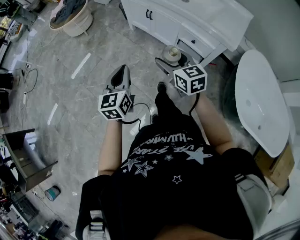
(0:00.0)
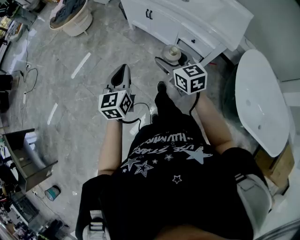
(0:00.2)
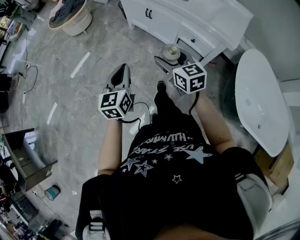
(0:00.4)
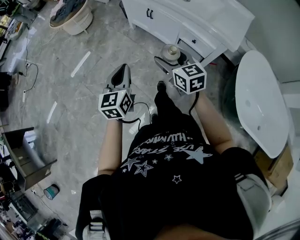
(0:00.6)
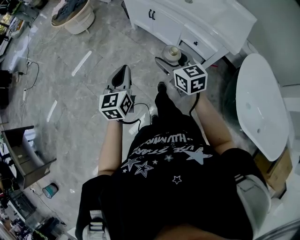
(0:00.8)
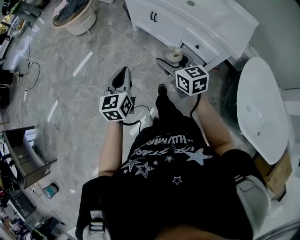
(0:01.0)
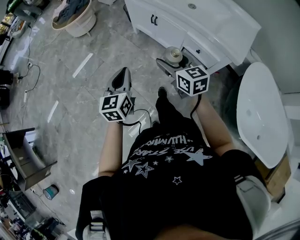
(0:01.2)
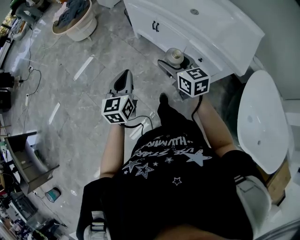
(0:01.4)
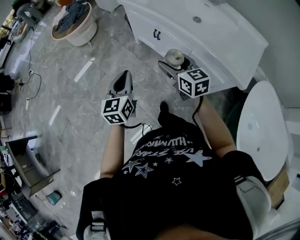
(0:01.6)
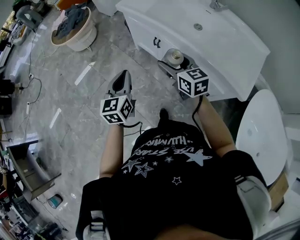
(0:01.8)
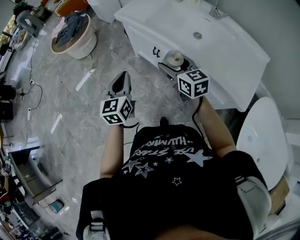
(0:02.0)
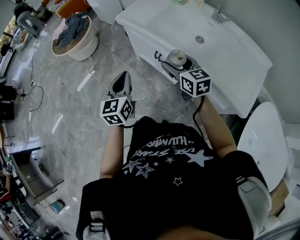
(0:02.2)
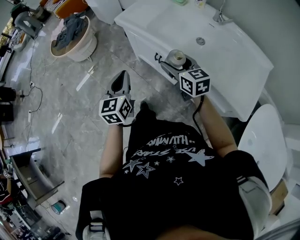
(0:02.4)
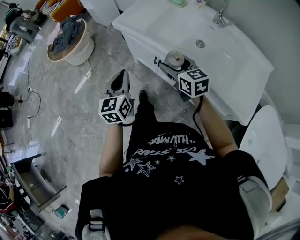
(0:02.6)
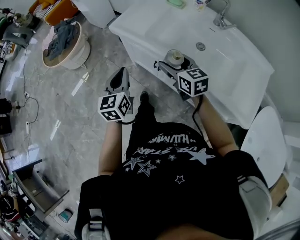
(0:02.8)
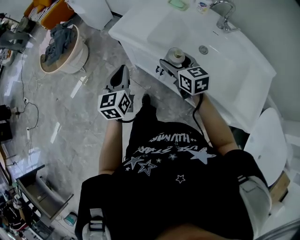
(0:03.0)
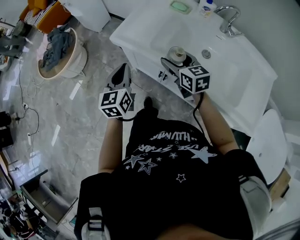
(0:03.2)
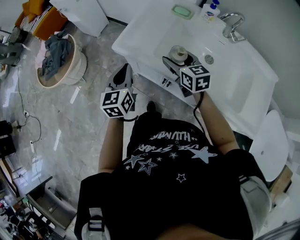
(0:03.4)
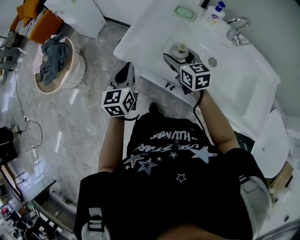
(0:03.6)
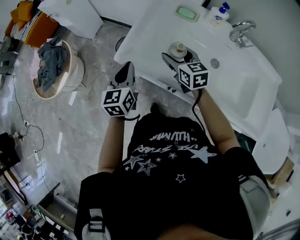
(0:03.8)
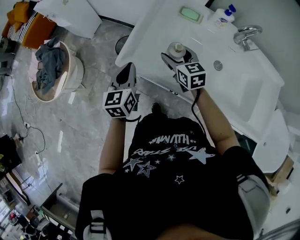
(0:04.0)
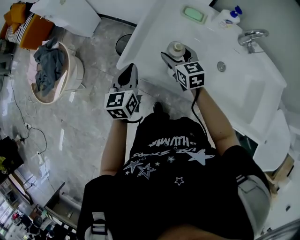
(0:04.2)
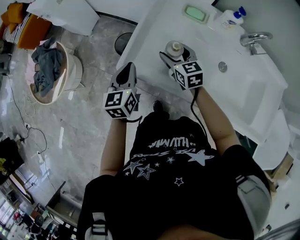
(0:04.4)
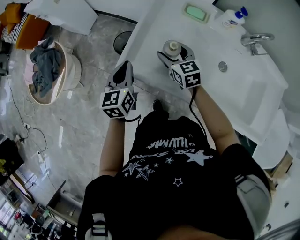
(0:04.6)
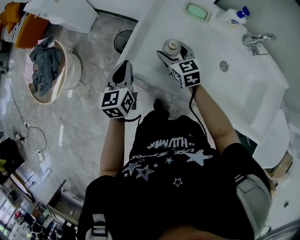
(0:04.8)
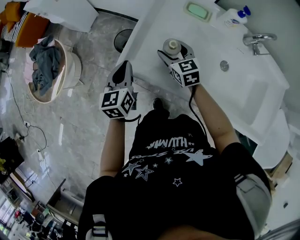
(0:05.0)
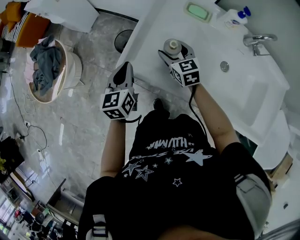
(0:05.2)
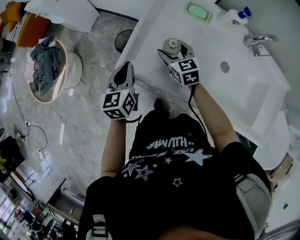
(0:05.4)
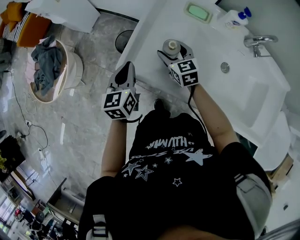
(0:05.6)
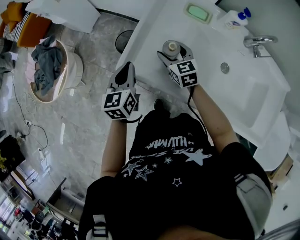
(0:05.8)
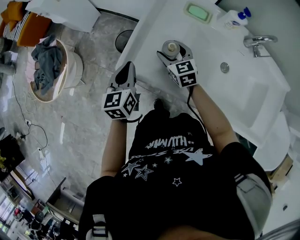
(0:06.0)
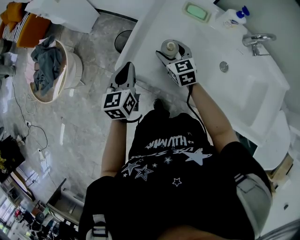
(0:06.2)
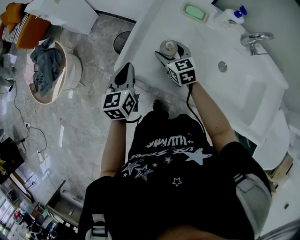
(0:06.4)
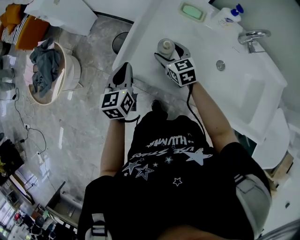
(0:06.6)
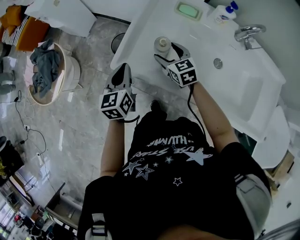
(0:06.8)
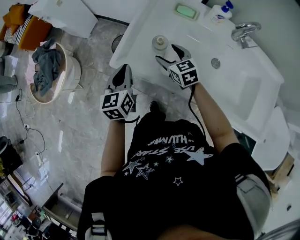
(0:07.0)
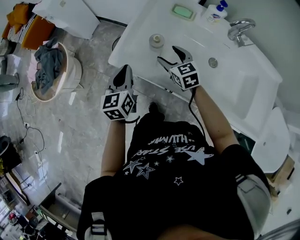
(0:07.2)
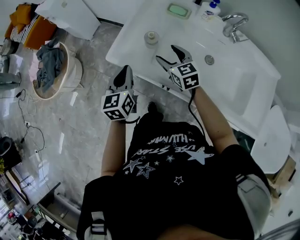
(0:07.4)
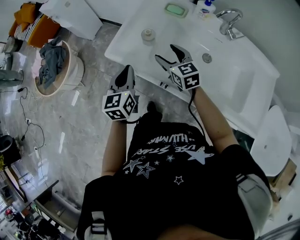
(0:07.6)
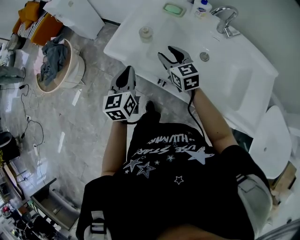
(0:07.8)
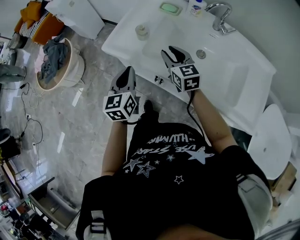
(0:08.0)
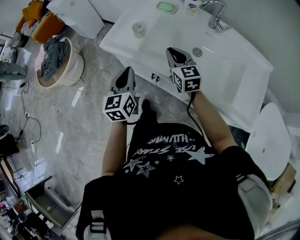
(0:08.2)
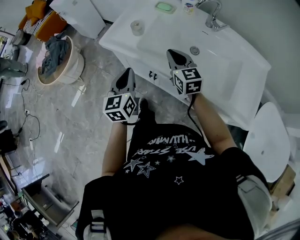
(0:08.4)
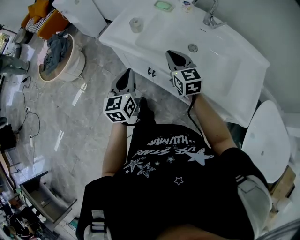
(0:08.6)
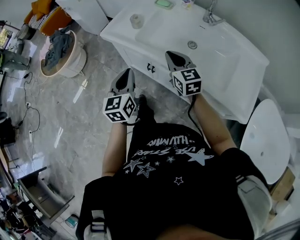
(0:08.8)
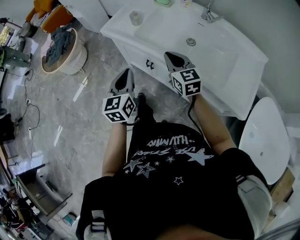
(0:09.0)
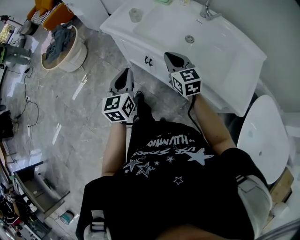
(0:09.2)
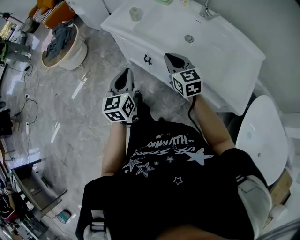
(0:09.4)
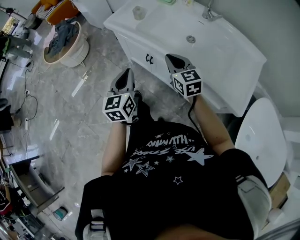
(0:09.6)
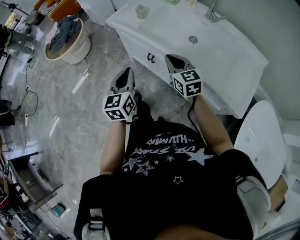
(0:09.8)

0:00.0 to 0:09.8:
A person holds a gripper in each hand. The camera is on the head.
0:00.0 to 0:01.4: Both grippers move forward, about 15 cm.
0:01.4 to 0:02.8: Both grippers travel together forward, some 40 cm.
0:02.8 to 0:04.2: The two grippers go some 35 cm forward.
0:04.2 to 0:05.6: The right gripper moves some 5 cm.
0:05.6 to 0:07.0: The two grippers go roughly 5 cm backward.
0:07.0 to 0:08.4: The left gripper moves backward and to the right, about 30 cm. Meanwhile the right gripper is displaced backward, upward and to the right by roughly 30 cm, and closes its fingers.
0:08.4 to 0:09.8: Both grippers travel together backward, approximately 20 cm.

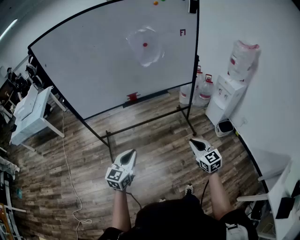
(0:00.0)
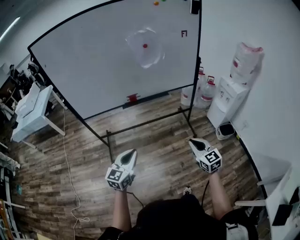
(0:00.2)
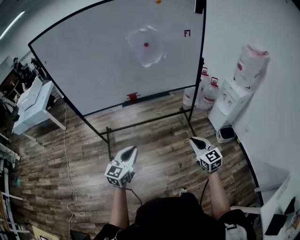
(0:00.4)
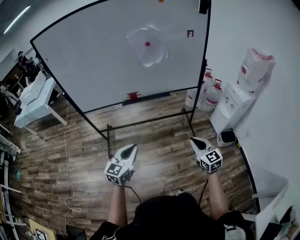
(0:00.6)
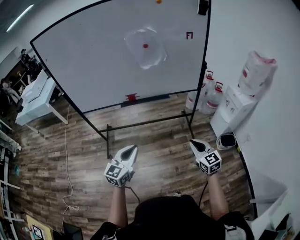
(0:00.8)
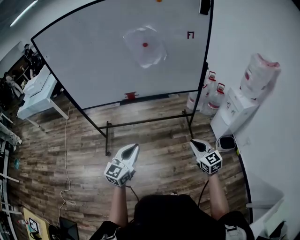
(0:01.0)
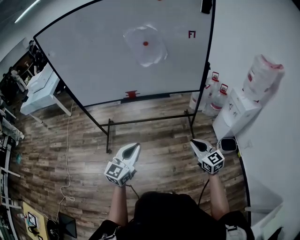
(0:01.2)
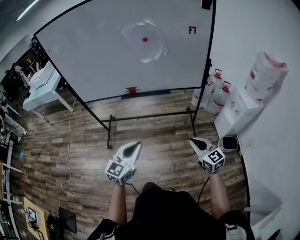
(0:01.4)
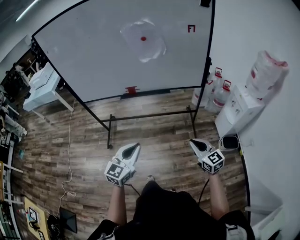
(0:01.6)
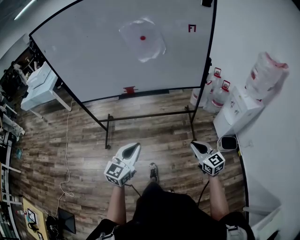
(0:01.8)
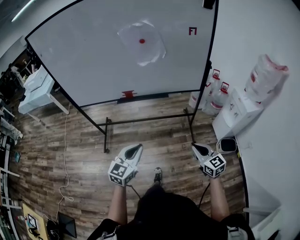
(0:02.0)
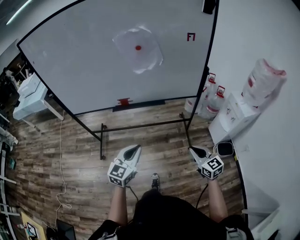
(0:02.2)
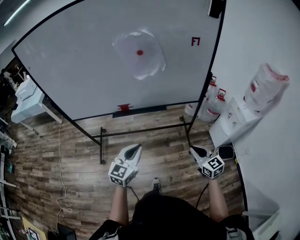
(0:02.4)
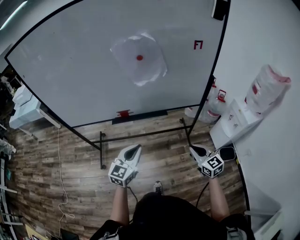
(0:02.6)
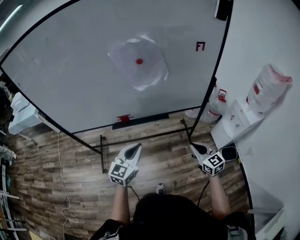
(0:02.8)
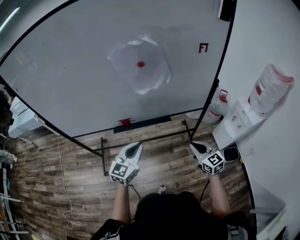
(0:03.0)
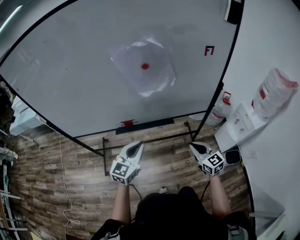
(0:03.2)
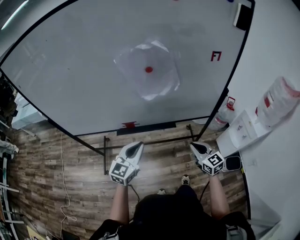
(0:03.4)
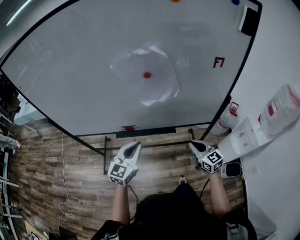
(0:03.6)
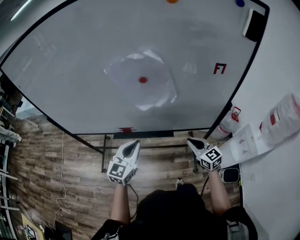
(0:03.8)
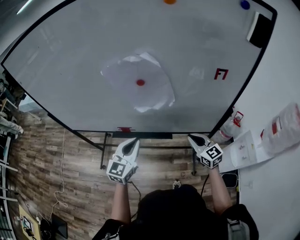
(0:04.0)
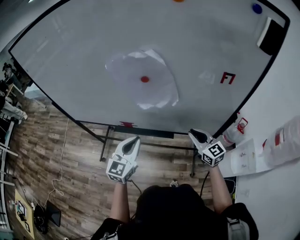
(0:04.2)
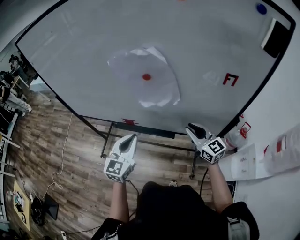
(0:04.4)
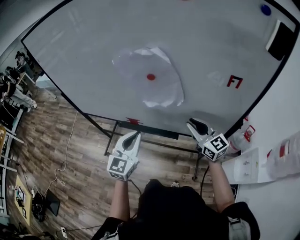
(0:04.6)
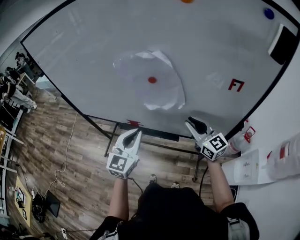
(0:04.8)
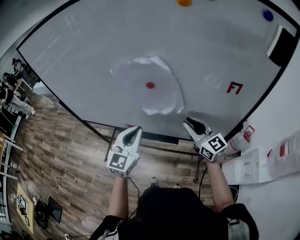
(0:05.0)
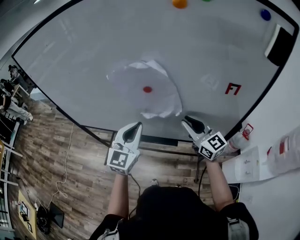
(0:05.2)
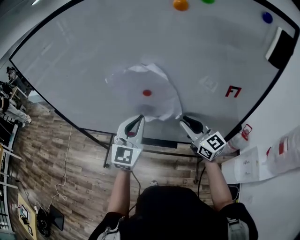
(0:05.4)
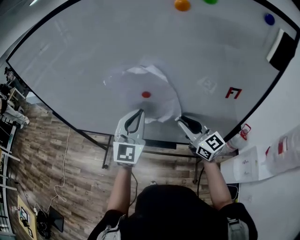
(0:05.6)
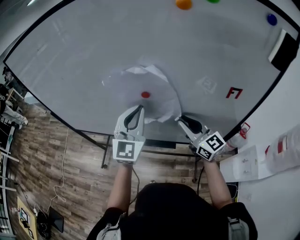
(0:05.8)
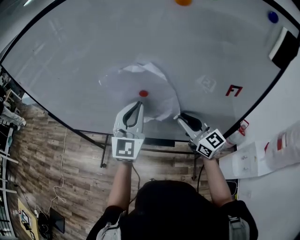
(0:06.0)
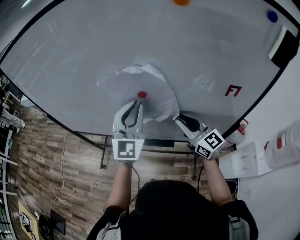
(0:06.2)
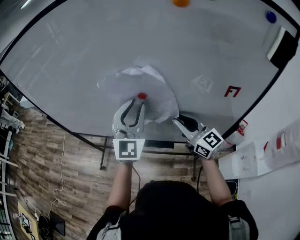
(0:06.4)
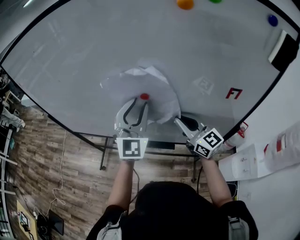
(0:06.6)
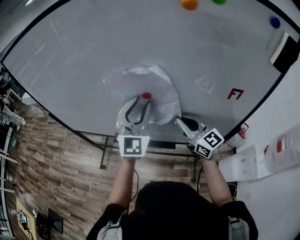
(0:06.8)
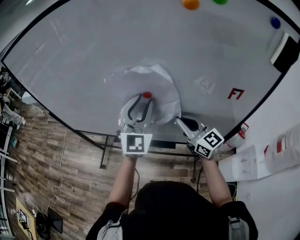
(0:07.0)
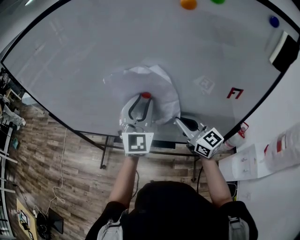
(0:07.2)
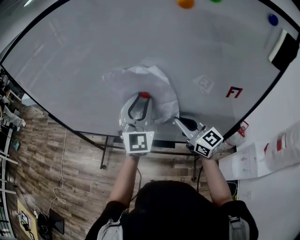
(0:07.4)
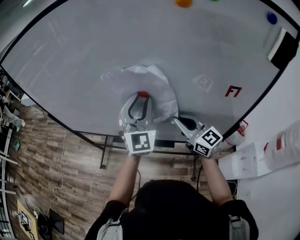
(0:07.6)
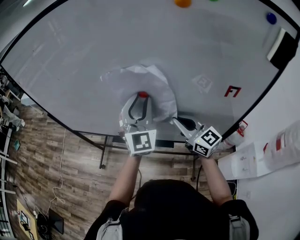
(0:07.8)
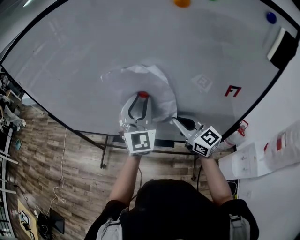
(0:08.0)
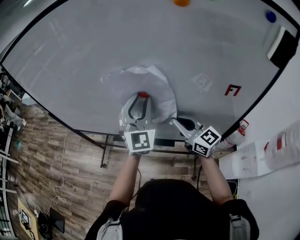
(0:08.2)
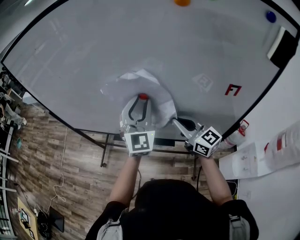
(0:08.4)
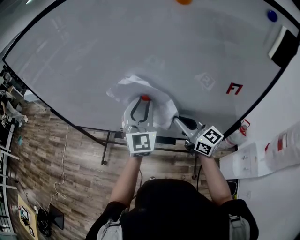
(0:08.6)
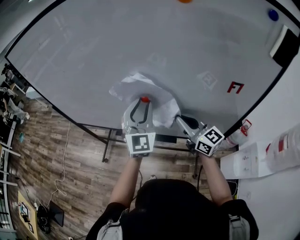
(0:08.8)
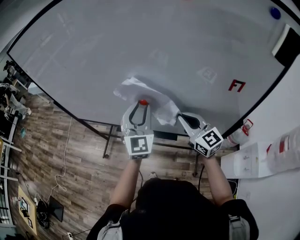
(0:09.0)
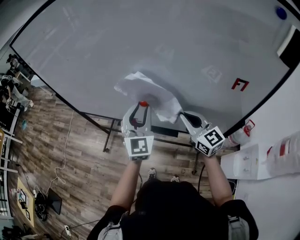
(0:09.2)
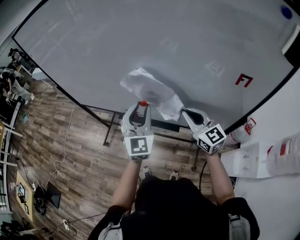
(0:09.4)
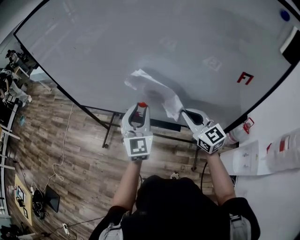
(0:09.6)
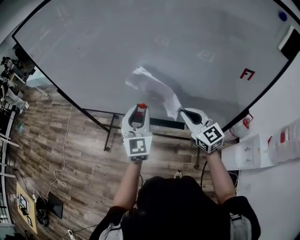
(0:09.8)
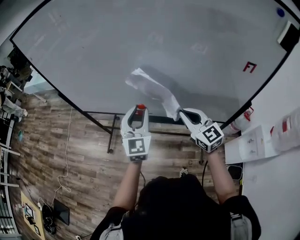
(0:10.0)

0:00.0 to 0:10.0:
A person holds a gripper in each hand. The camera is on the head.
0:00.0 to 0:01.4: The left gripper travels to the right by roughly 25 cm. The right gripper goes approximately 20 cm to the right and forward, and rotates roughly 20 degrees.
0:01.4 to 0:02.8: Both grippers travel together forward, approximately 25 cm.
0:02.8 to 0:04.2: The left gripper is displaced forward and to the right by approximately 15 cm, and rotates roughly 20 degrees; the right gripper heads forward, covering approximately 25 cm.
0:04.2 to 0:05.8: Both grippers move upward and forward, approximately 15 cm. The left gripper changes its angle by about 20 degrees.
0:05.8 to 0:07.2: The left gripper opens up.
0:07.2 to 0:08.6: The grippers stay close to where they were, moving slightly.
0:08.6 to 0:10.0: The left gripper moves to the left and downward, roughly 20 cm. The right gripper is displaced to the left by some 10 cm, and turns by some 20 degrees.

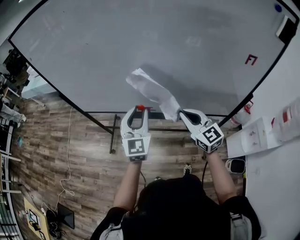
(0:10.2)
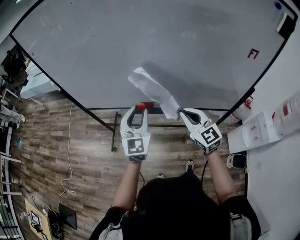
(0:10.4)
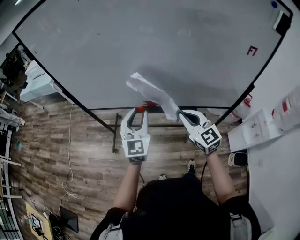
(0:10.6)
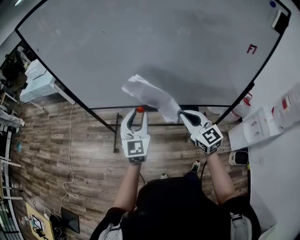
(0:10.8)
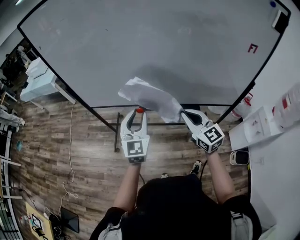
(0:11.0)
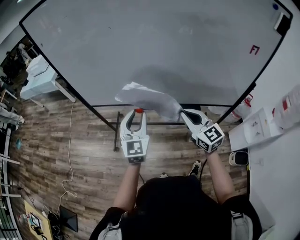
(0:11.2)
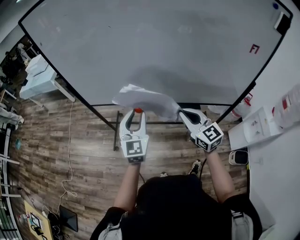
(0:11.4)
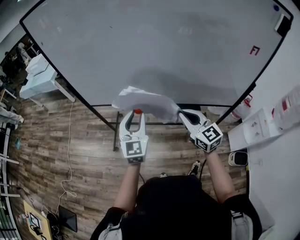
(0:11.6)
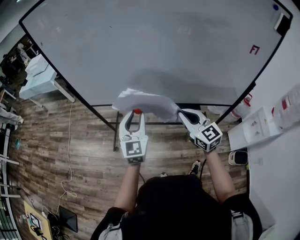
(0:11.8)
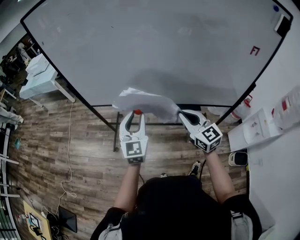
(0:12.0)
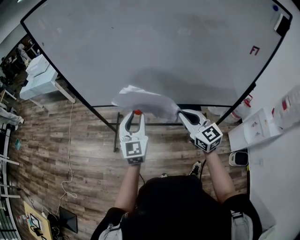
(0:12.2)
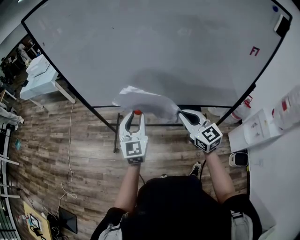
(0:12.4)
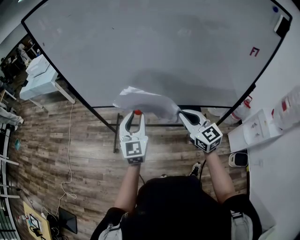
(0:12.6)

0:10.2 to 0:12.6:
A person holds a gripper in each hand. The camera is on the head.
0:10.2 to 0:11.4: The grippers both shift to the left by roughly 10 cm.
0:11.4 to 0:12.6: Neither gripper changes place.

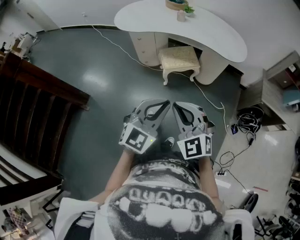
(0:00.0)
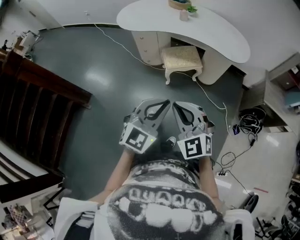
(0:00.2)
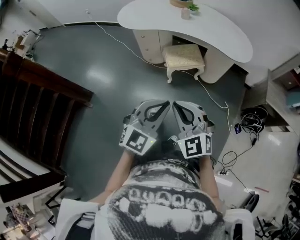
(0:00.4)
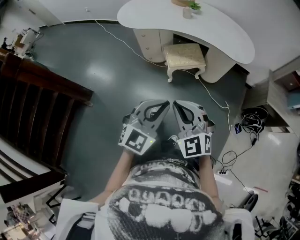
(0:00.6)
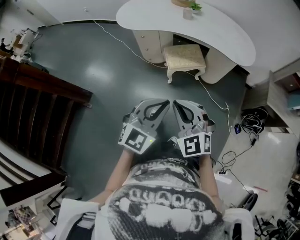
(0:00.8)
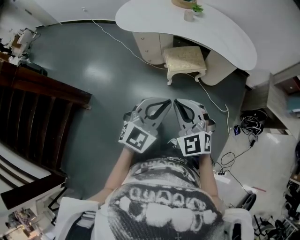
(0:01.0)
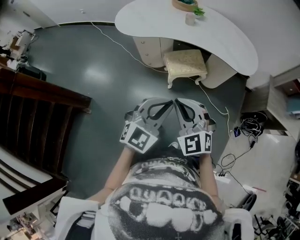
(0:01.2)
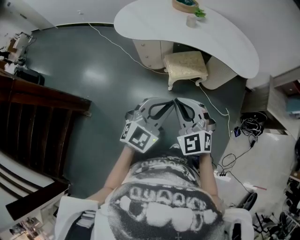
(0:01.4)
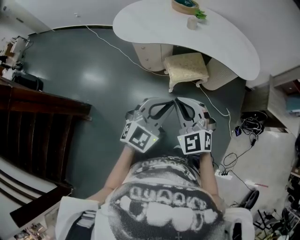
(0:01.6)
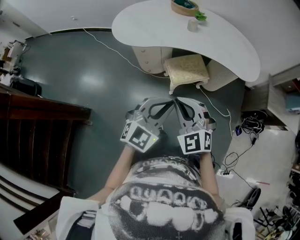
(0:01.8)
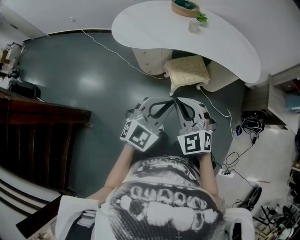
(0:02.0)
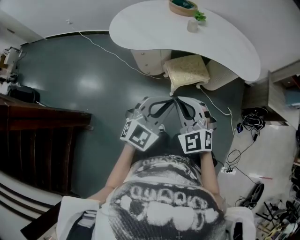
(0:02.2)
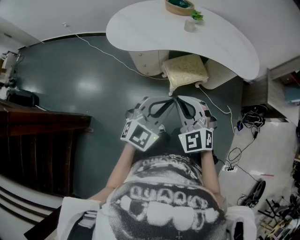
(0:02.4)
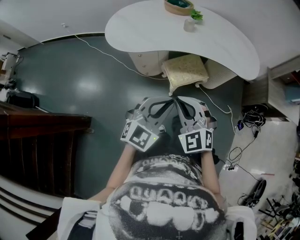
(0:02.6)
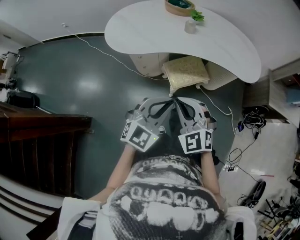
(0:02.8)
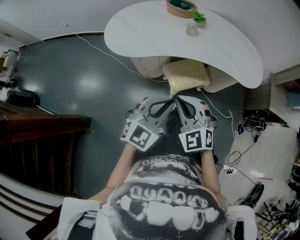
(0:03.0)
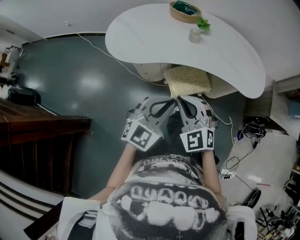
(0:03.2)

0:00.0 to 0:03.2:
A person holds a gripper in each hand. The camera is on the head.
0:00.0 to 0:01.6: Both grippers move forward and to the left, approximately 20 cm.
0:01.6 to 0:03.2: The two grippers go some 20 cm forward.
